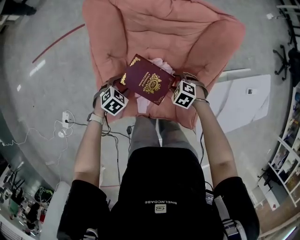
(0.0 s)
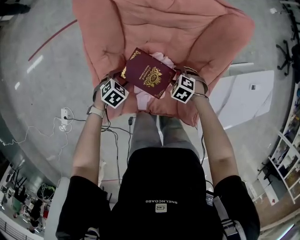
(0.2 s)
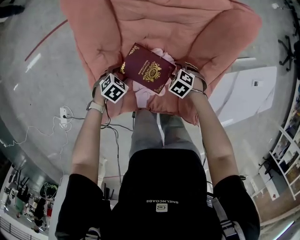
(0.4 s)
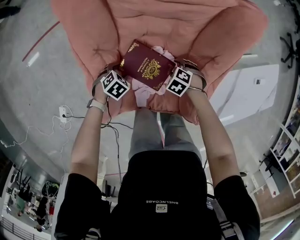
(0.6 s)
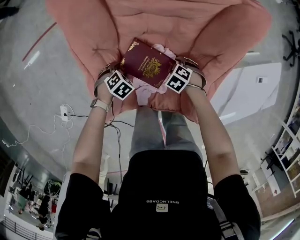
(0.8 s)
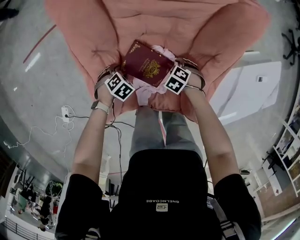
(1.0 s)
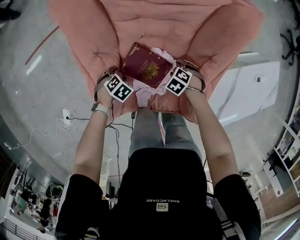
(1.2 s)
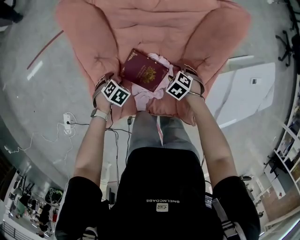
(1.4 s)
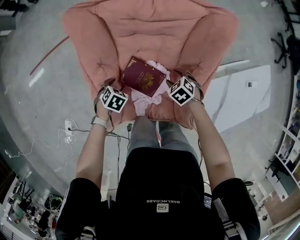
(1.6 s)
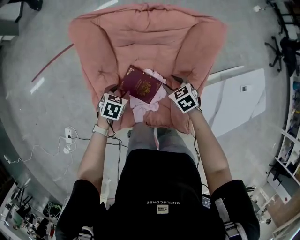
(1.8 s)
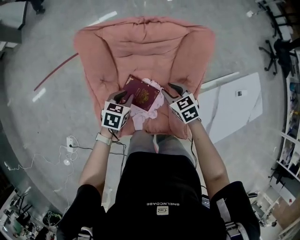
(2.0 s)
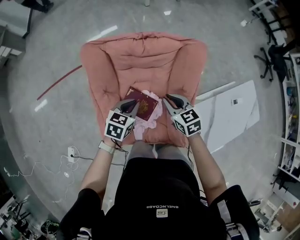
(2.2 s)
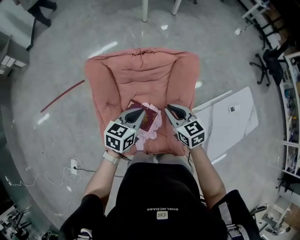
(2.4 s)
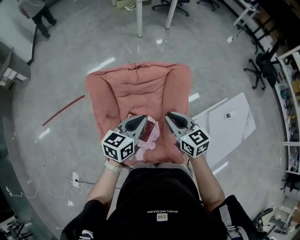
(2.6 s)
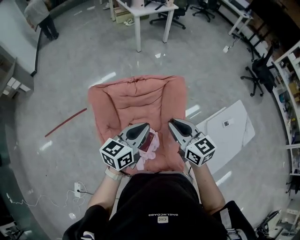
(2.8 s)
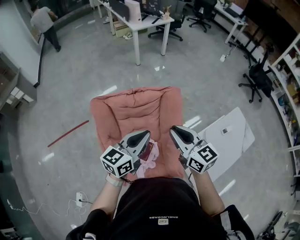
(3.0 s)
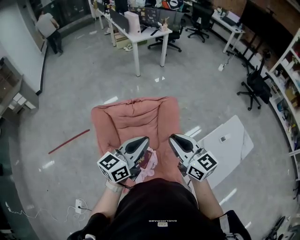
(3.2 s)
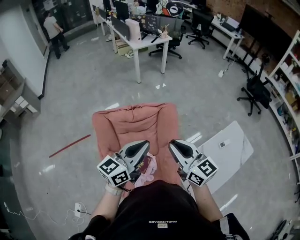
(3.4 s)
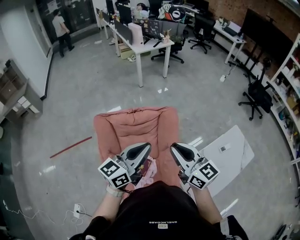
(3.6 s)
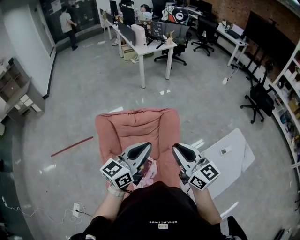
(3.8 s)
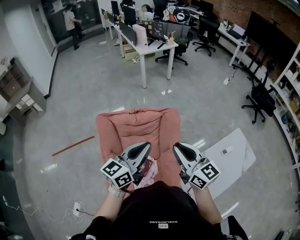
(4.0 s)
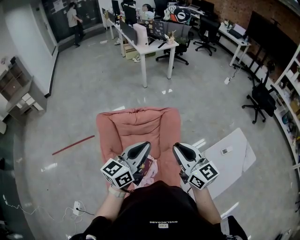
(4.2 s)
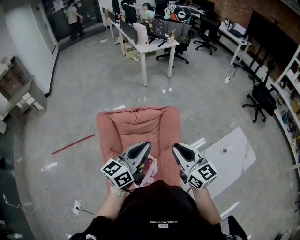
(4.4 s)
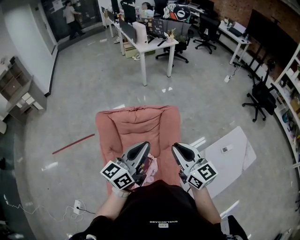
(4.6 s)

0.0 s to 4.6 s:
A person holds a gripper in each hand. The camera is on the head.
0.0 to 1.6 s: The left gripper moves about 15 cm downward and comes back. Meanwhile the right gripper goes downward and returns, approximately 15 cm each way, and turns by some 20 degrees.
1.6 to 3.0 s: Both grippers travel together upward, roughly 50 cm. The left gripper points its fingers about 70 degrees further upward, and closes up; the right gripper tips its fingers upward by approximately 60 degrees, and closes.
3.0 to 4.6 s: The left gripper shifts about 10 cm upward, while the right gripper shifts approximately 10 cm to the right, upward and backward.

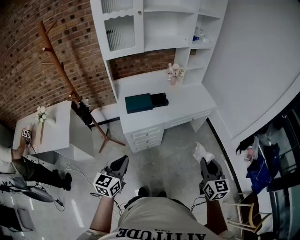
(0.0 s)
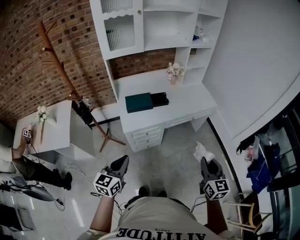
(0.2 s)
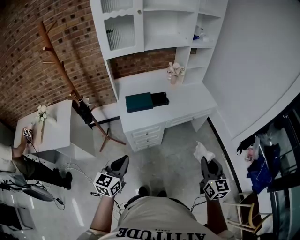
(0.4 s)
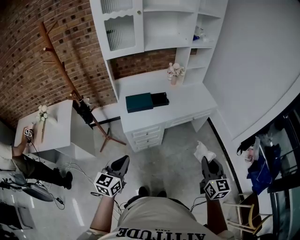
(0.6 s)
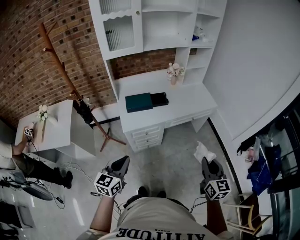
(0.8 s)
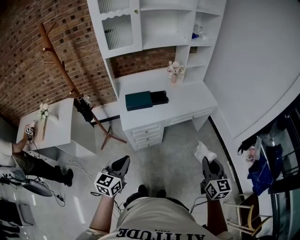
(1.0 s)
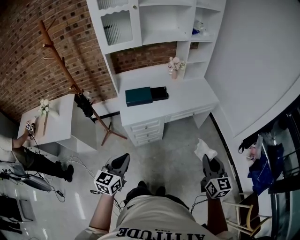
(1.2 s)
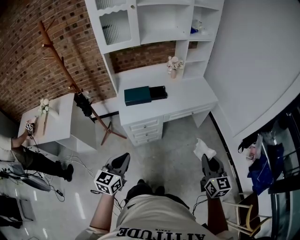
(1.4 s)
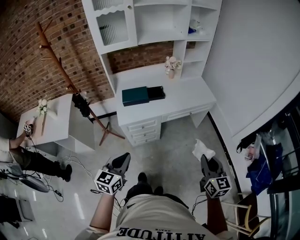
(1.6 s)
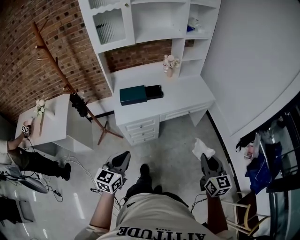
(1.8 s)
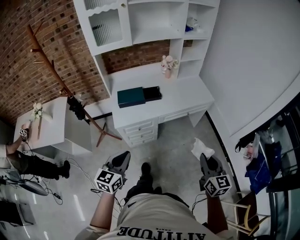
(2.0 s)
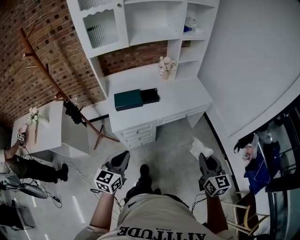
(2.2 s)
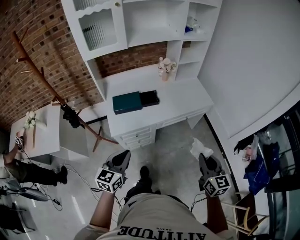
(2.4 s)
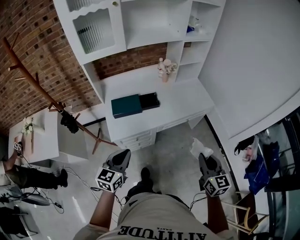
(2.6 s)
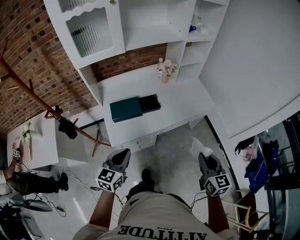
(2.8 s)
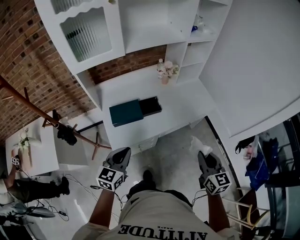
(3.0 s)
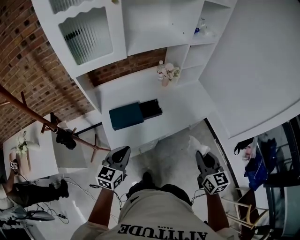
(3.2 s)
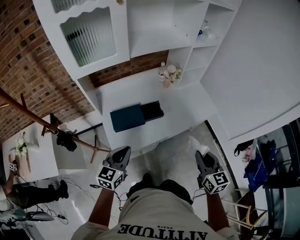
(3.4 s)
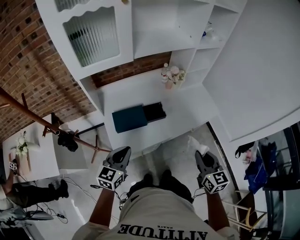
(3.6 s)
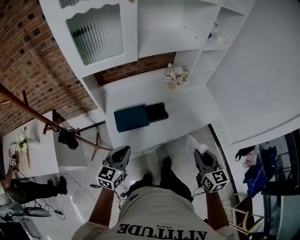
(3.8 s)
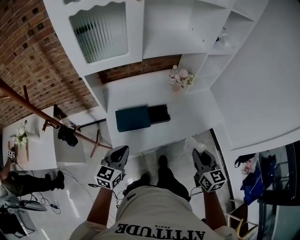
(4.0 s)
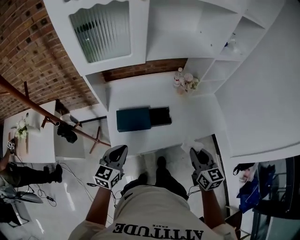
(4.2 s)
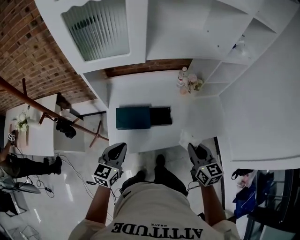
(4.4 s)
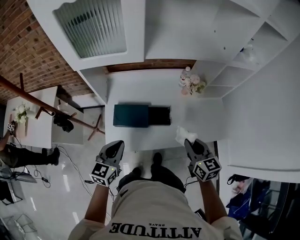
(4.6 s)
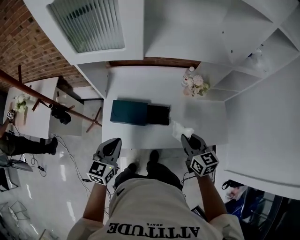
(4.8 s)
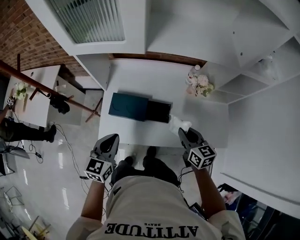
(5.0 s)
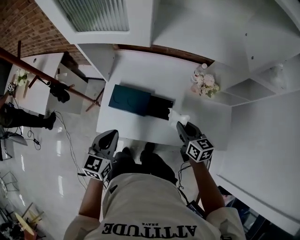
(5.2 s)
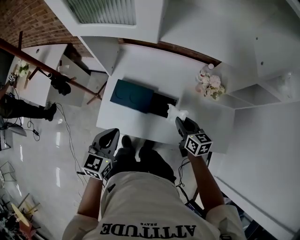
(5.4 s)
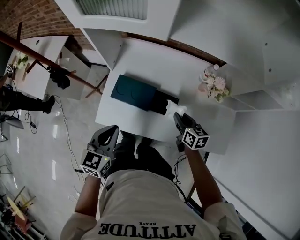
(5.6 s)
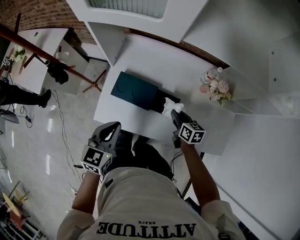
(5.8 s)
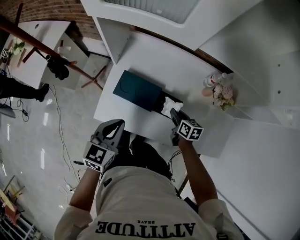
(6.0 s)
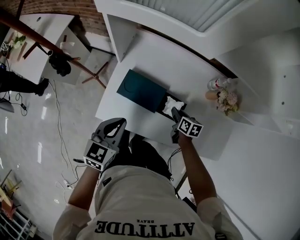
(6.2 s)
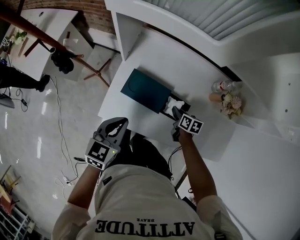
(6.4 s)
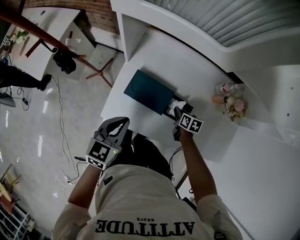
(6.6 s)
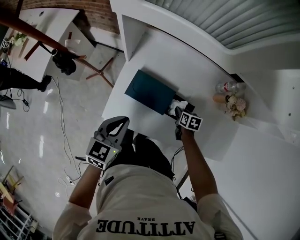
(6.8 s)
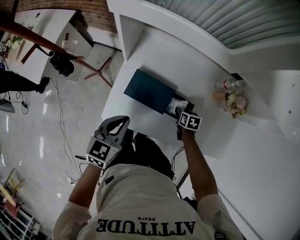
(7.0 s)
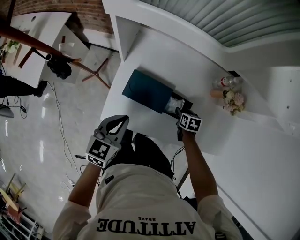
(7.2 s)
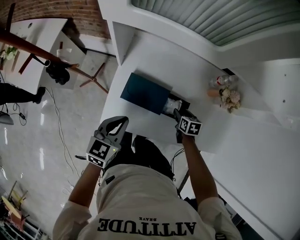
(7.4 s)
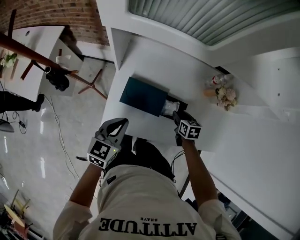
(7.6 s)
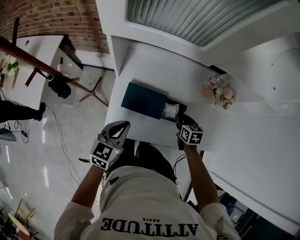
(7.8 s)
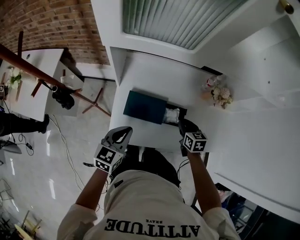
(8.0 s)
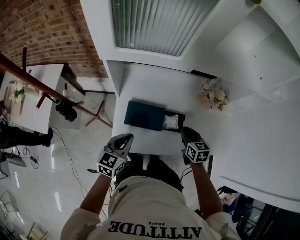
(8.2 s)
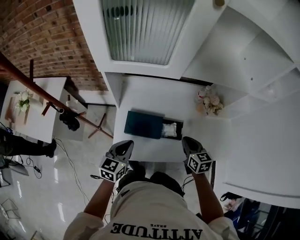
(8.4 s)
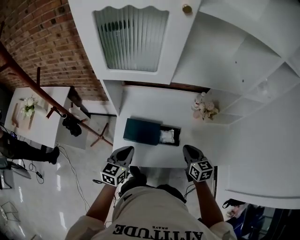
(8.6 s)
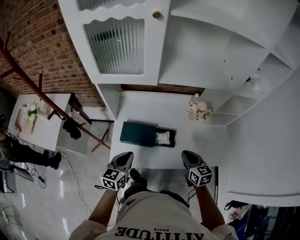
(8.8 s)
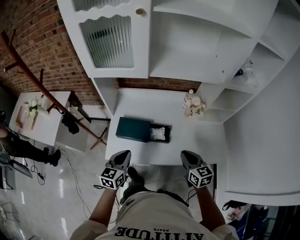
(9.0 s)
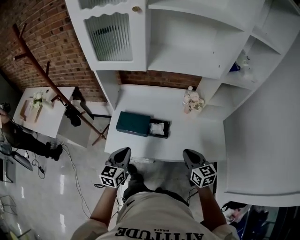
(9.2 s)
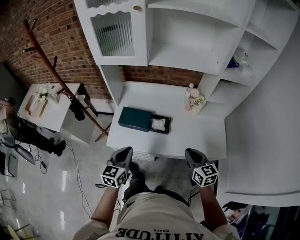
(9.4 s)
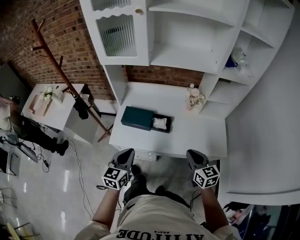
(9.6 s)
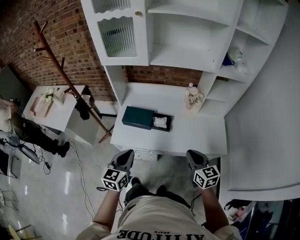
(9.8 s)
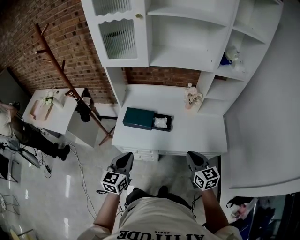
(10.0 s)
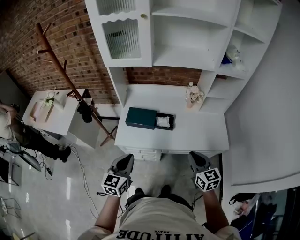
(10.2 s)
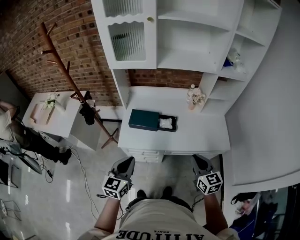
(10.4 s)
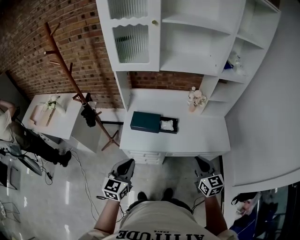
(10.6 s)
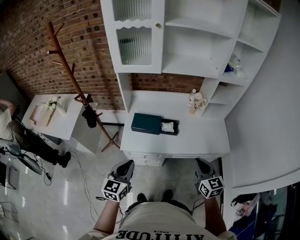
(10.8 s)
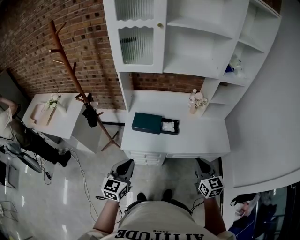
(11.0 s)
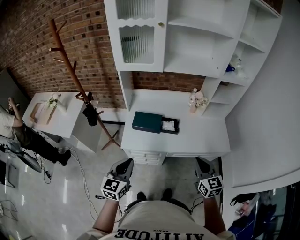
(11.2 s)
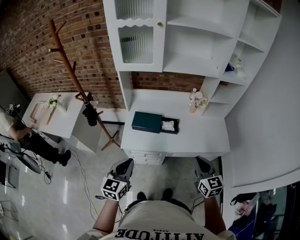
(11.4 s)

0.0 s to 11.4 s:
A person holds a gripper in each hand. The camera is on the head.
0.0 to 1.4 s: Both grippers move to the right, some 5 cm.
1.4 to 2.8 s: The grippers both shift forward by about 20 cm.
2.8 to 4.2 s: Both grippers move forward and to the left, some 20 cm.
4.2 to 5.6 s: The right gripper changes place by some 30 cm, and turns by roughly 40 degrees, while the left gripper ends up about 10 cm from where it was, and rotates about 30 degrees.
5.6 to 7.2 s: The left gripper goes some 10 cm forward, to the left and downward, while the right gripper moves downward, some 15 cm, angles its fingers downward, by approximately 30 degrees, and opens.
7.2 to 8.6 s: The left gripper ends up approximately 5 cm from where it was, while the right gripper shifts about 25 cm upward and backward, tips its fingers upward by roughly 40 degrees, and closes up.
8.6 to 10.0 s: Both grippers move backward, some 25 cm.
10.0 to 11.4 s: The left gripper goes approximately 10 cm to the left, while the right gripper is displaced to the left by some 5 cm.

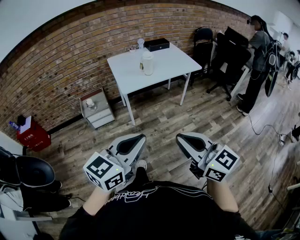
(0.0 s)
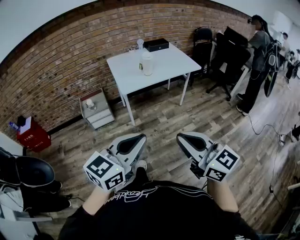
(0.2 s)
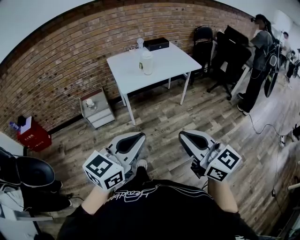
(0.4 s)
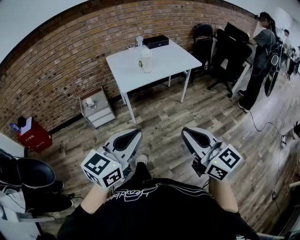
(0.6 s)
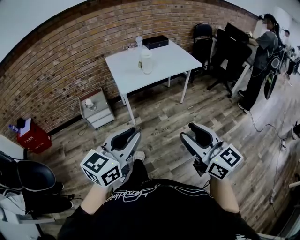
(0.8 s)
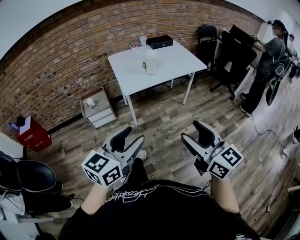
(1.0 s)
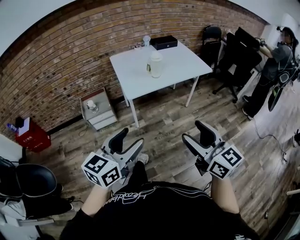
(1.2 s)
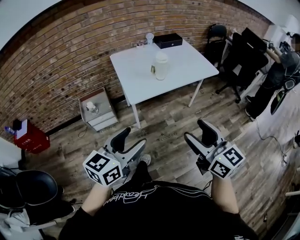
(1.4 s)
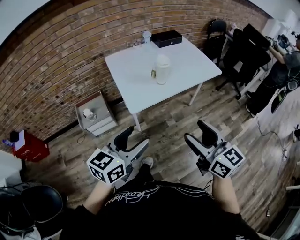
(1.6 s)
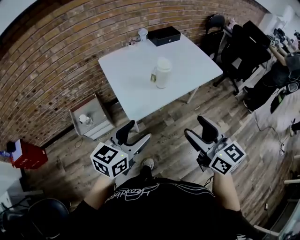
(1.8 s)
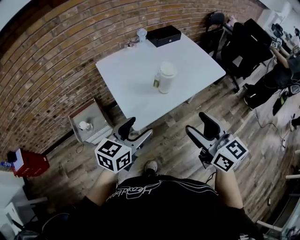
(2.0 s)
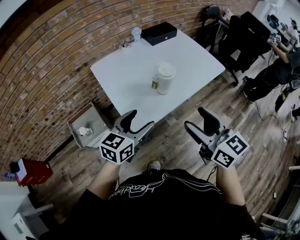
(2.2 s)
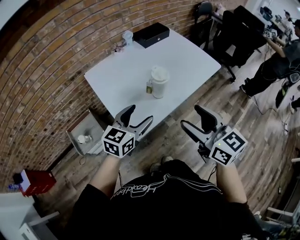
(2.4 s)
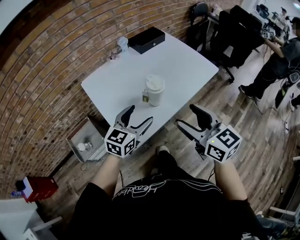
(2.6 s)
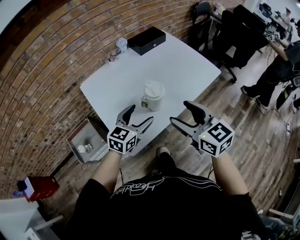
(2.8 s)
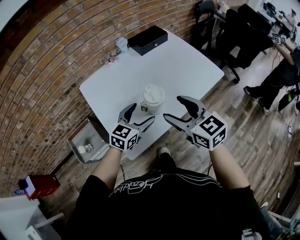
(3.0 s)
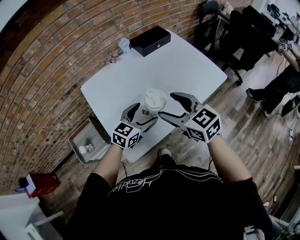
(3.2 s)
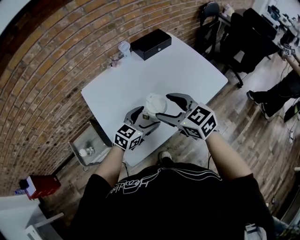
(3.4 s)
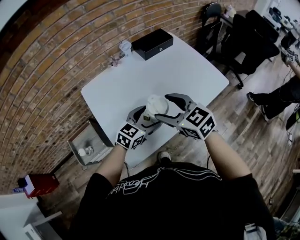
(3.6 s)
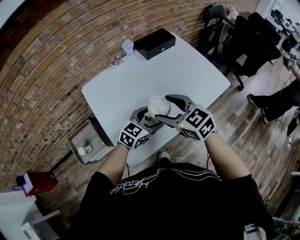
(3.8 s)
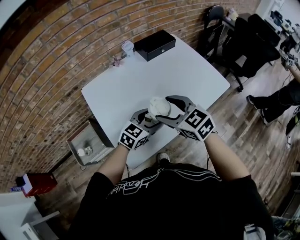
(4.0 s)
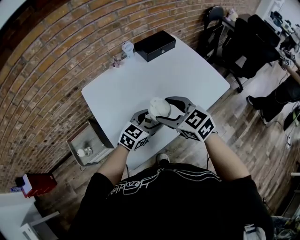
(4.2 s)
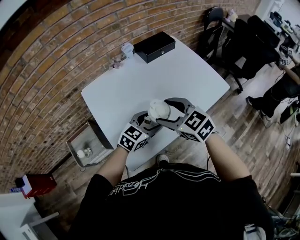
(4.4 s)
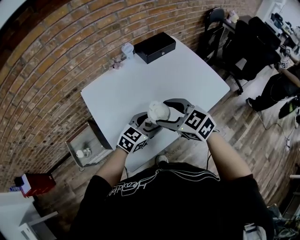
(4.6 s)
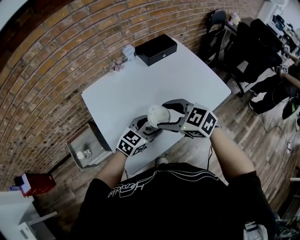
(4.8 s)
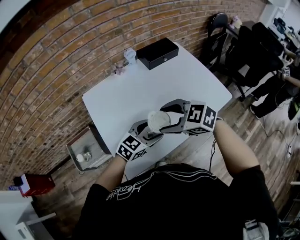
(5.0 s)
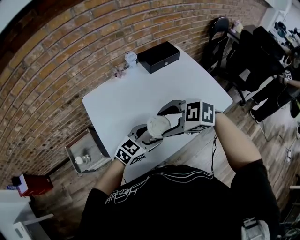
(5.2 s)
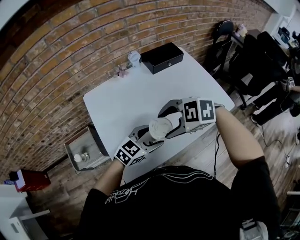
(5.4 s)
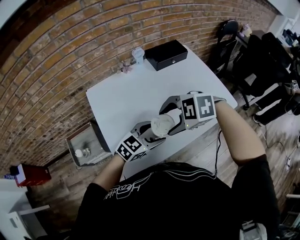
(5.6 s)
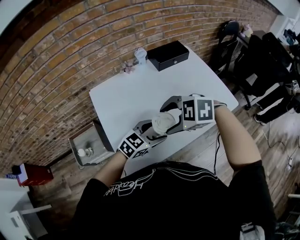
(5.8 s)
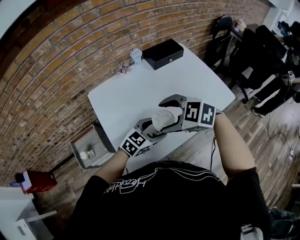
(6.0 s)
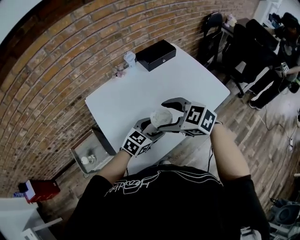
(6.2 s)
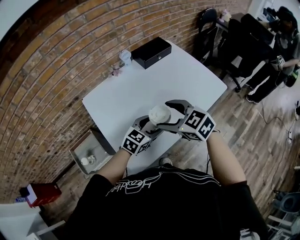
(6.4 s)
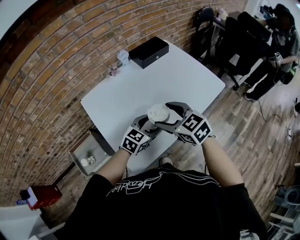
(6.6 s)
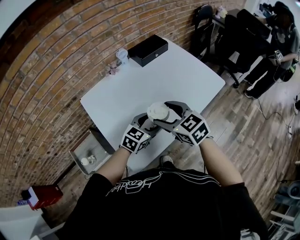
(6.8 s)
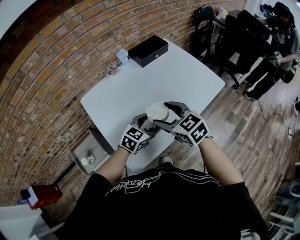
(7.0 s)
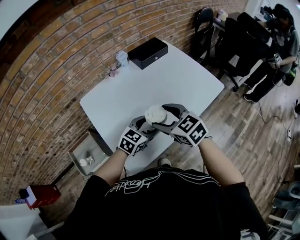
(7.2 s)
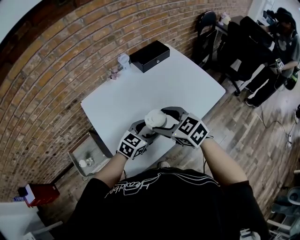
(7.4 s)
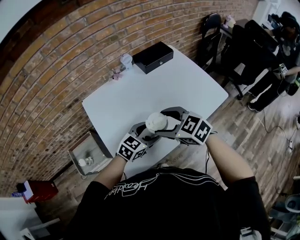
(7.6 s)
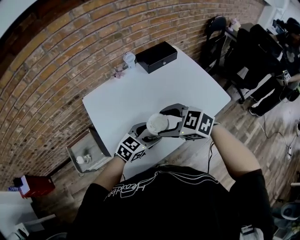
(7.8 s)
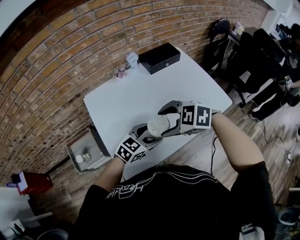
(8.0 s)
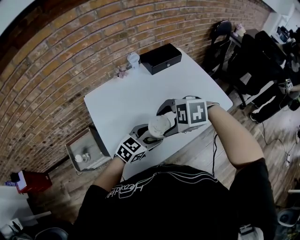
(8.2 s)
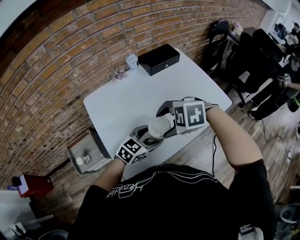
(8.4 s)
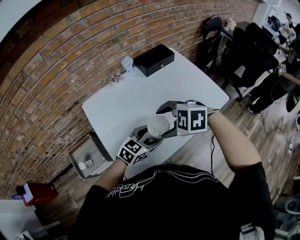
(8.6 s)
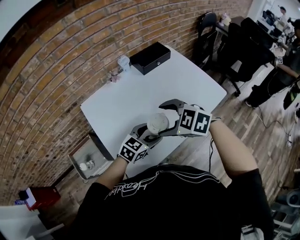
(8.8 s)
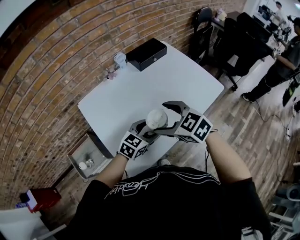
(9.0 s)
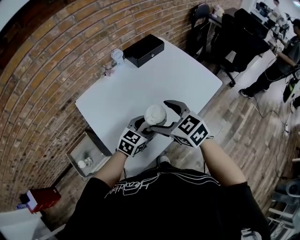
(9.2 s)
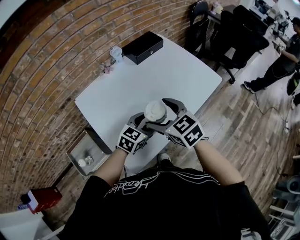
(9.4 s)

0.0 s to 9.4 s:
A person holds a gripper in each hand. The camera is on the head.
0.0 to 1.6 s: Both grippers travel together forward, approximately 30 cm. The right gripper opens up. The left gripper opens up.
1.6 to 3.2 s: Both grippers move forward, some 40 cm. The left gripper turns by about 20 degrees.
3.2 to 4.8 s: The right gripper ends up approximately 5 cm from where it was, and changes its angle by roughly 20 degrees.
7.8 to 9.4 s: The right gripper turns by roughly 40 degrees.
